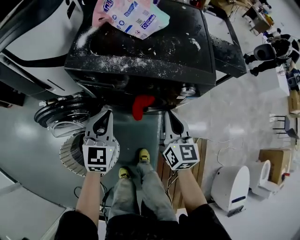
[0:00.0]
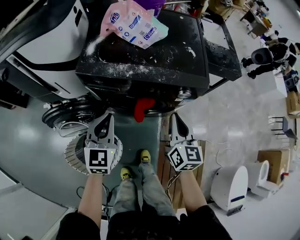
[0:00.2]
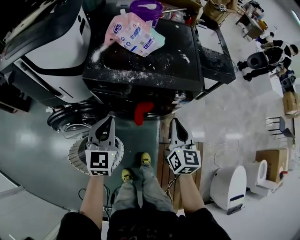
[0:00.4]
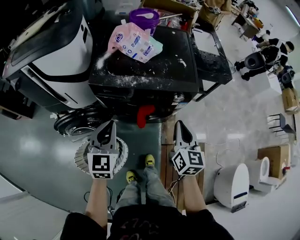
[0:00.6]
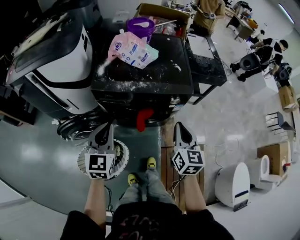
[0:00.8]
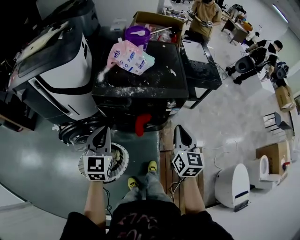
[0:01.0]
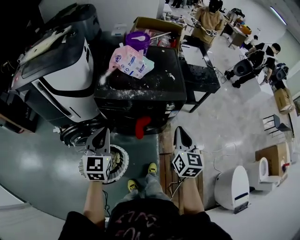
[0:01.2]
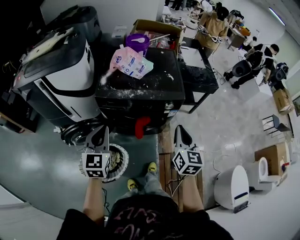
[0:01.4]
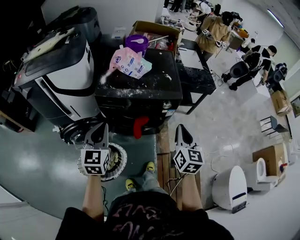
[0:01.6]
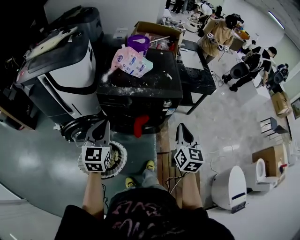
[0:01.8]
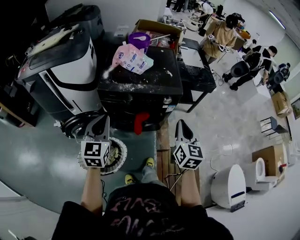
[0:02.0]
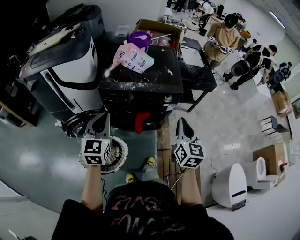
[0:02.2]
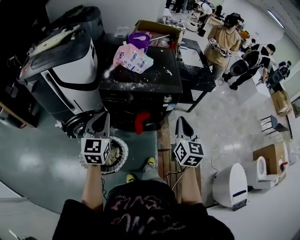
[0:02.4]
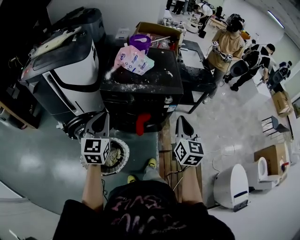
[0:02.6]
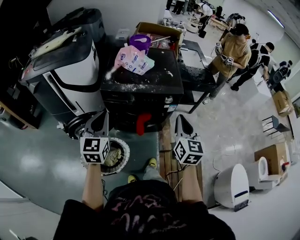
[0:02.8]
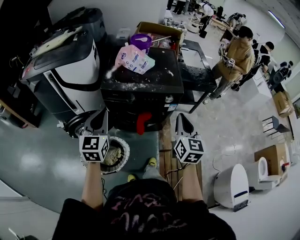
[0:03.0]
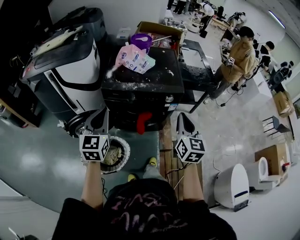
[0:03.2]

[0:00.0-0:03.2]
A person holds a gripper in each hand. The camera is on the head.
0:00.0 to 0:01.6: The two grippers go about 25 cm upward and backward.
0:01.6 to 0:03.2: There are only small adjustments of the grippers.

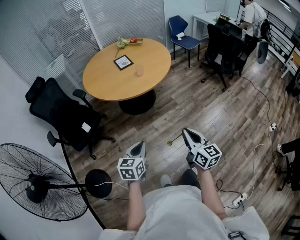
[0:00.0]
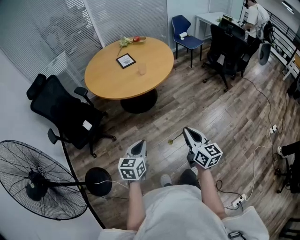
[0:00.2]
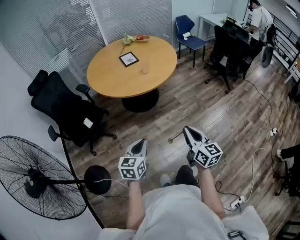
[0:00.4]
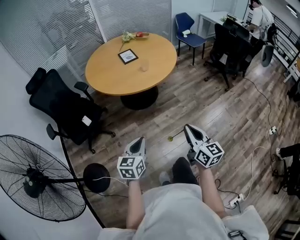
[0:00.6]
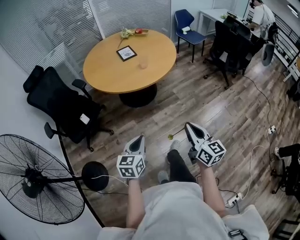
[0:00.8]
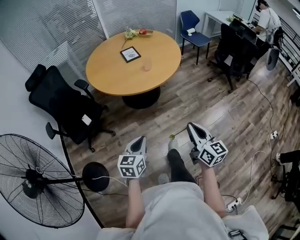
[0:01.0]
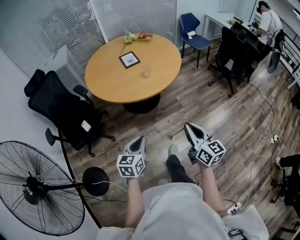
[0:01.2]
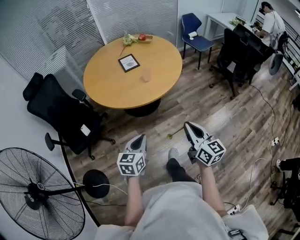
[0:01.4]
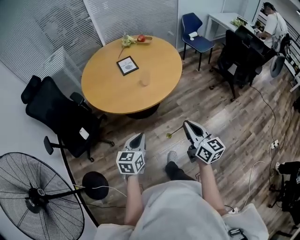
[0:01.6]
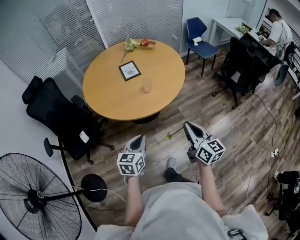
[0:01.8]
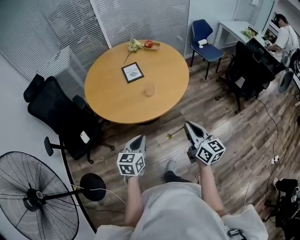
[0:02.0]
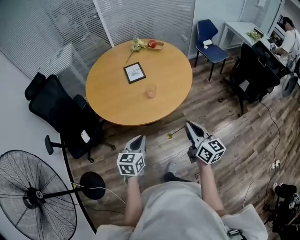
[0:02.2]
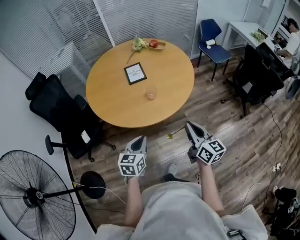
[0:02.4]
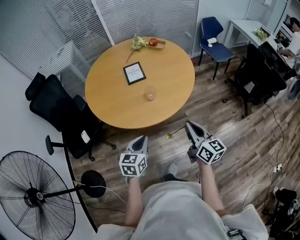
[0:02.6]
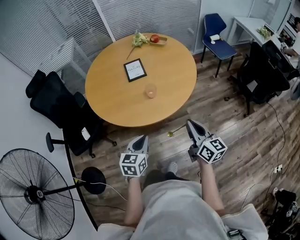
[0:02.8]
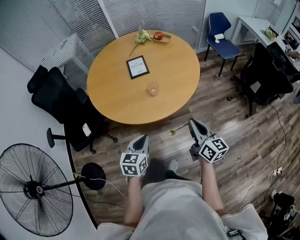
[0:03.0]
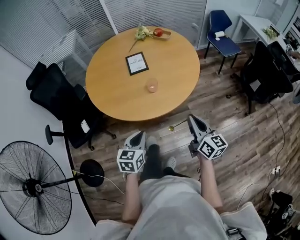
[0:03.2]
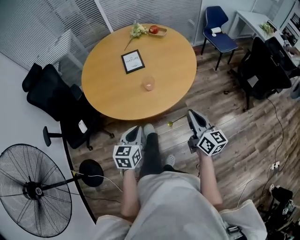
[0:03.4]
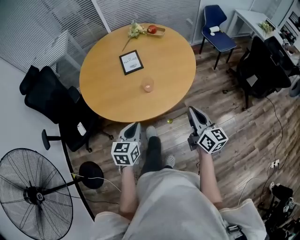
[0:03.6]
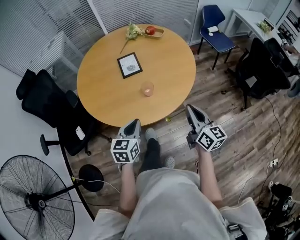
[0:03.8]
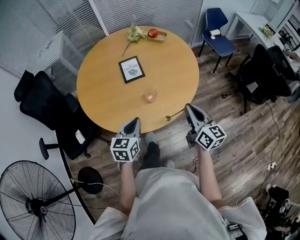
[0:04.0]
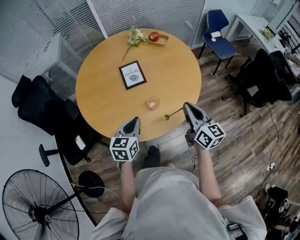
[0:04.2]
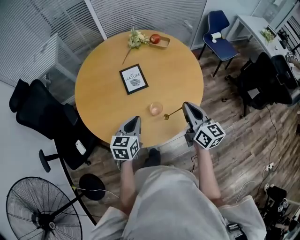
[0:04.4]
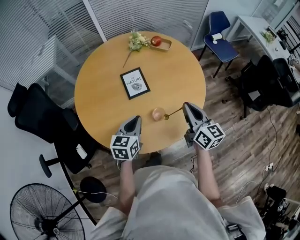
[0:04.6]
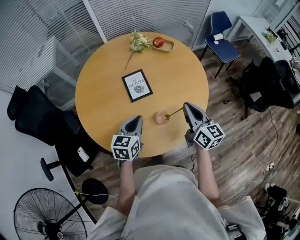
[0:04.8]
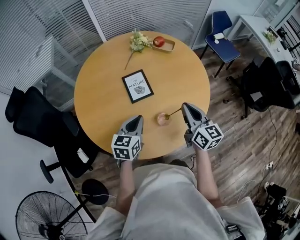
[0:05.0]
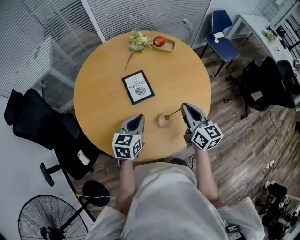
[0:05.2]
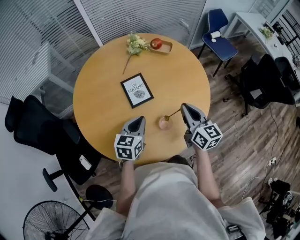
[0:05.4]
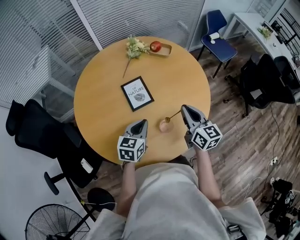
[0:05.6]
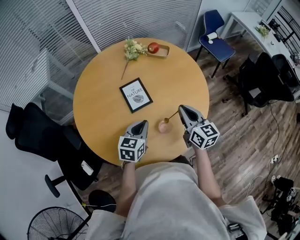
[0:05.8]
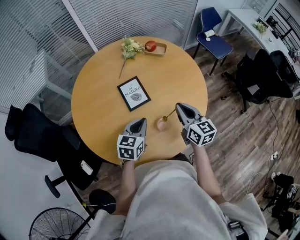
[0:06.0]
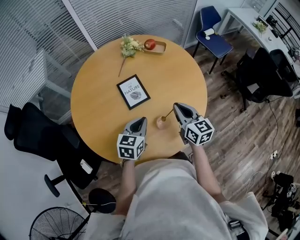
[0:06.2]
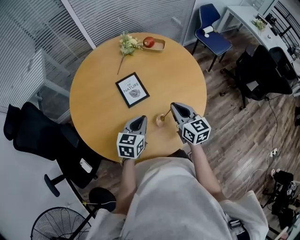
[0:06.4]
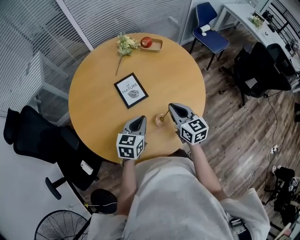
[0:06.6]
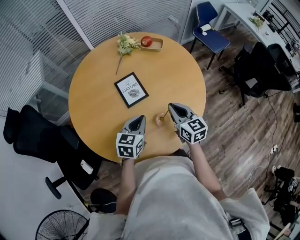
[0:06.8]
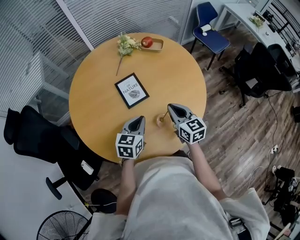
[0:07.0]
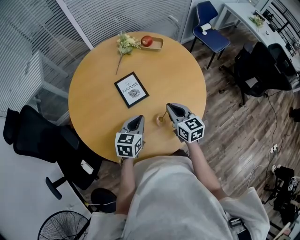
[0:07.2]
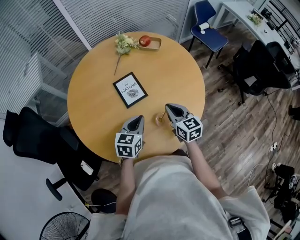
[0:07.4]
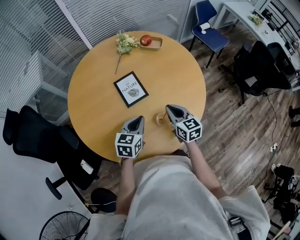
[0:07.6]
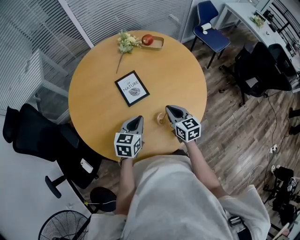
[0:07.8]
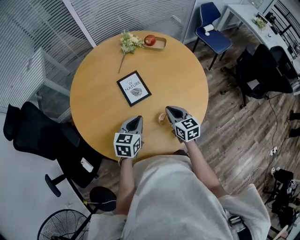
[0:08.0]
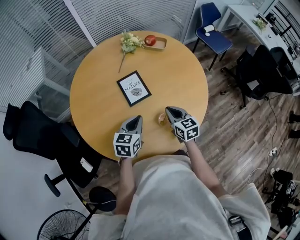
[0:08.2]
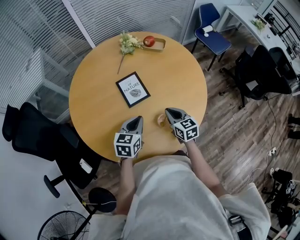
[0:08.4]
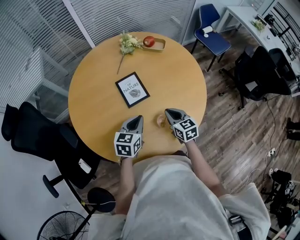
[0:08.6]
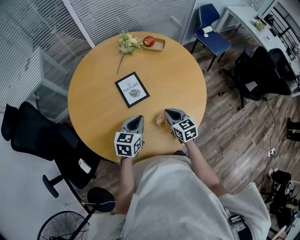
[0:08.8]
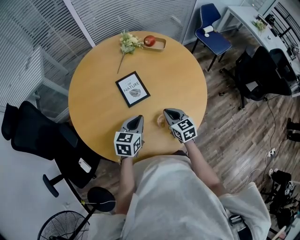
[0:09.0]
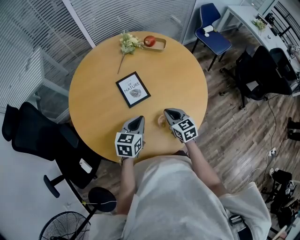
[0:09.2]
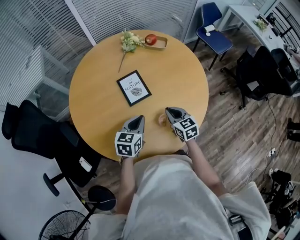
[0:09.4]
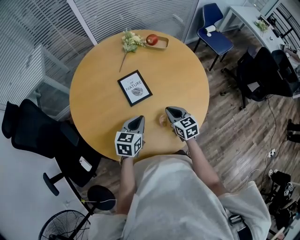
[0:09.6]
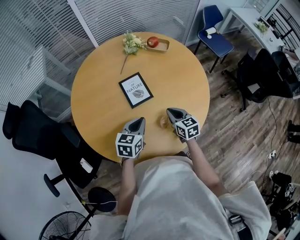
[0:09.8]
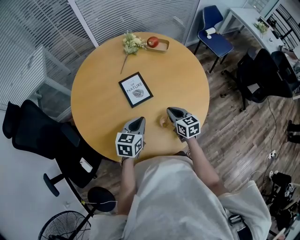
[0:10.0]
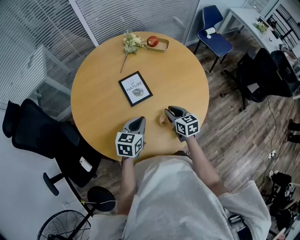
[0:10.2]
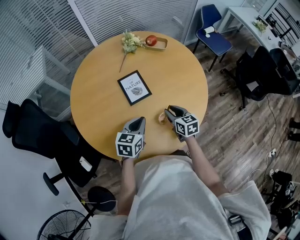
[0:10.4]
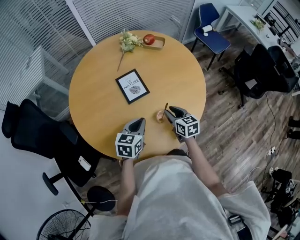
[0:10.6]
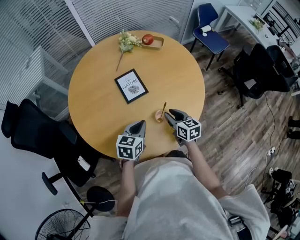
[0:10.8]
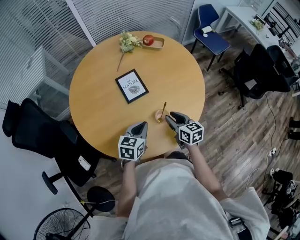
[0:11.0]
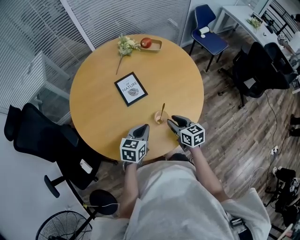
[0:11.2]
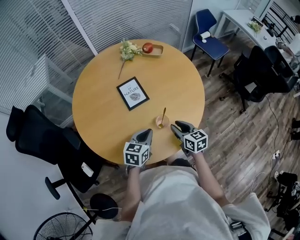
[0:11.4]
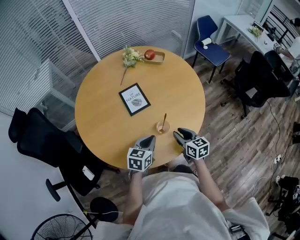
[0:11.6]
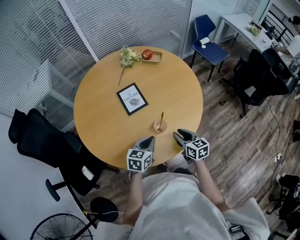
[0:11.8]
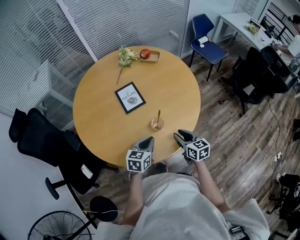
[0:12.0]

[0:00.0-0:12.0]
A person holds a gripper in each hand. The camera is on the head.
0:00.0 to 0:01.6: Both grippers travel together forward, approximately 25 cm.
0:01.6 to 0:03.0: Both grippers travel together forward, some 15 cm.
0:03.0 to 0:04.4: Both grippers move forward, approximately 25 cm.
0:04.4 to 0:06.0: The right gripper heads forward, to the left and downward, covering some 15 cm, while the left gripper travels forward by some 10 cm.
0:06.0 to 0:07.6: The right gripper moves downward, approximately 10 cm.
0:07.6 to 0:09.0: The grippers make only small movements.
0:09.0 to 0:10.4: The right gripper opens.
0:10.4 to 0:12.0: Both grippers move backward and to the right, some 15 cm.

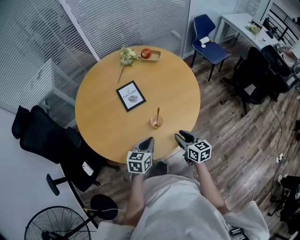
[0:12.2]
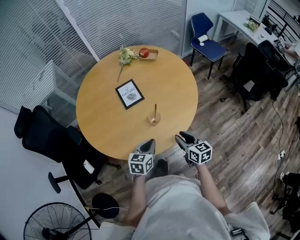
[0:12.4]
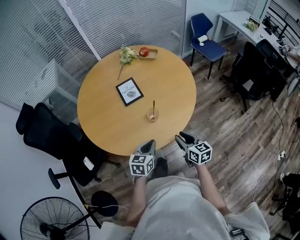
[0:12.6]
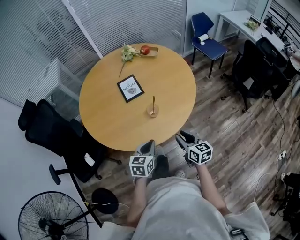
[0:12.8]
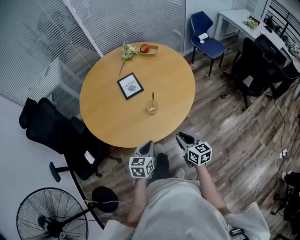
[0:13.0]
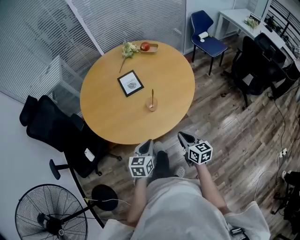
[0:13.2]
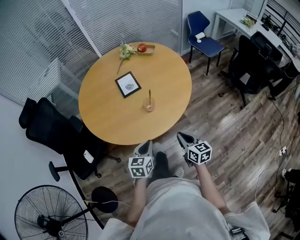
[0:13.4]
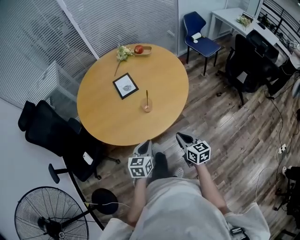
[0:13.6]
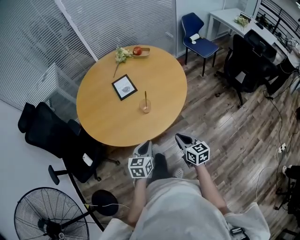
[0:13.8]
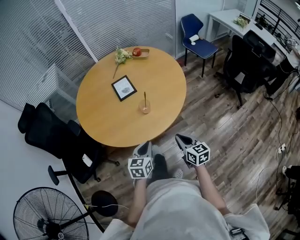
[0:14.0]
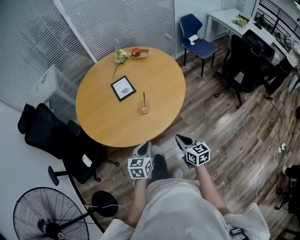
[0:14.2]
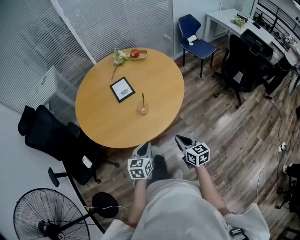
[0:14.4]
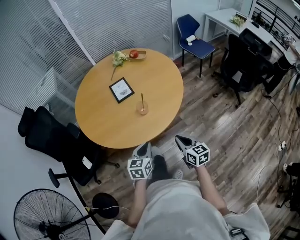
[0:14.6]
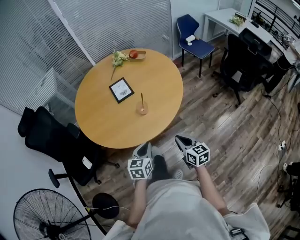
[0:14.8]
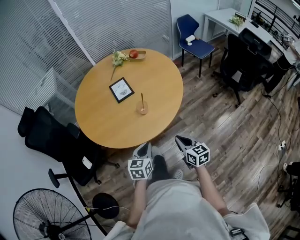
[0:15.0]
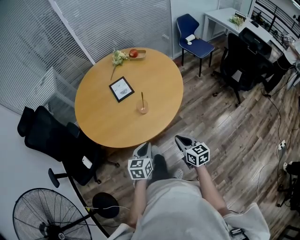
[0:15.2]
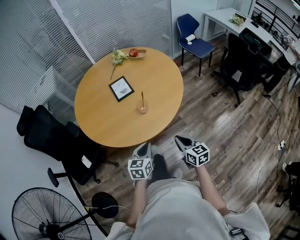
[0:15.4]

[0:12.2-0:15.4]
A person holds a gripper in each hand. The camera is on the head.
0:12.2 to 0:13.8: Both grippers move backward, about 15 cm. The right gripper closes up.
0:13.8 to 0:15.4: The grippers stay close to where they were, moving slightly.

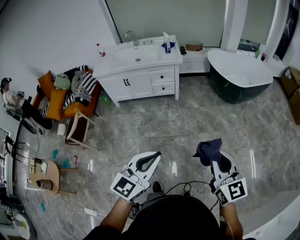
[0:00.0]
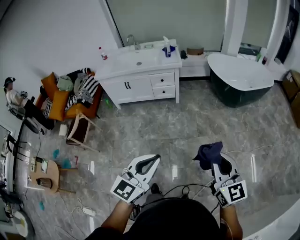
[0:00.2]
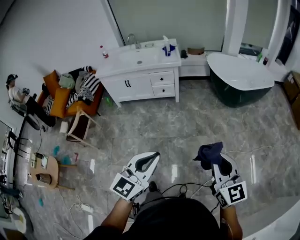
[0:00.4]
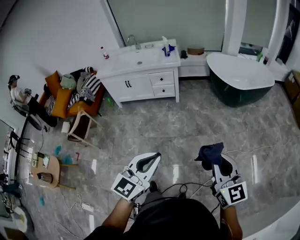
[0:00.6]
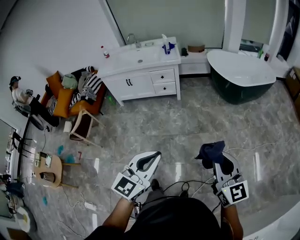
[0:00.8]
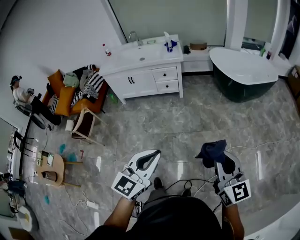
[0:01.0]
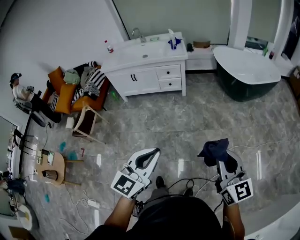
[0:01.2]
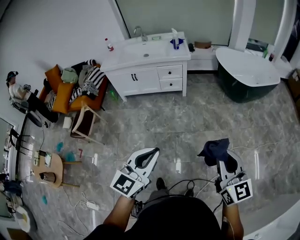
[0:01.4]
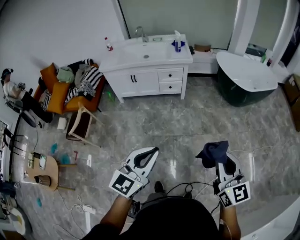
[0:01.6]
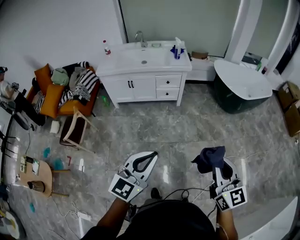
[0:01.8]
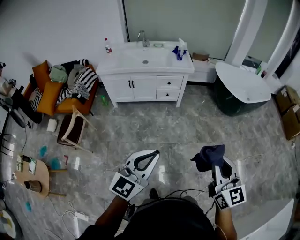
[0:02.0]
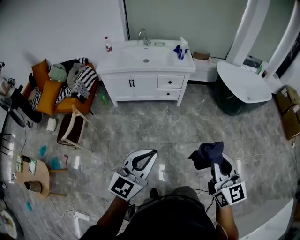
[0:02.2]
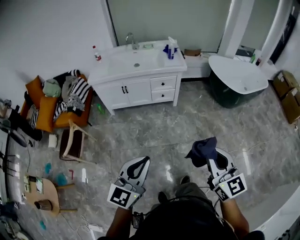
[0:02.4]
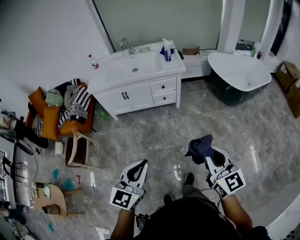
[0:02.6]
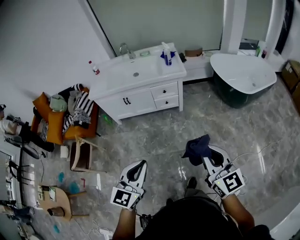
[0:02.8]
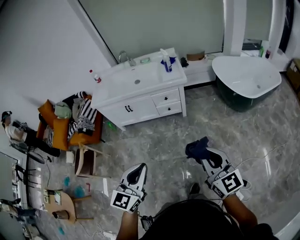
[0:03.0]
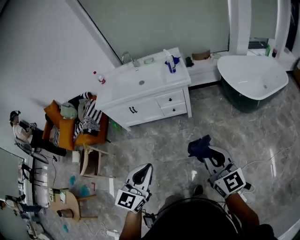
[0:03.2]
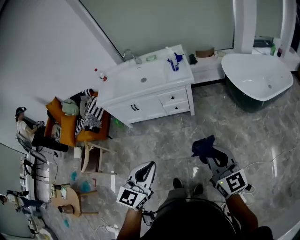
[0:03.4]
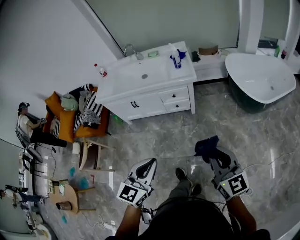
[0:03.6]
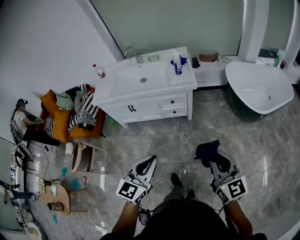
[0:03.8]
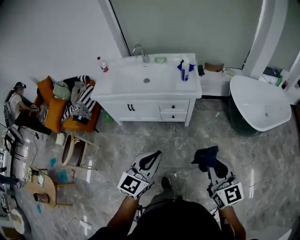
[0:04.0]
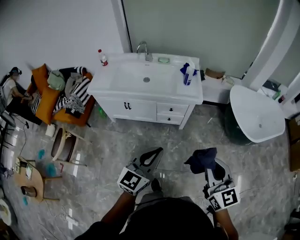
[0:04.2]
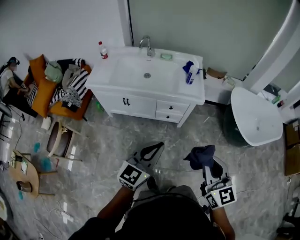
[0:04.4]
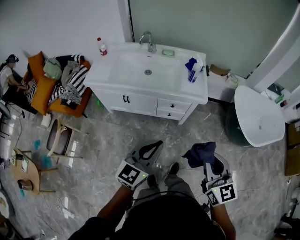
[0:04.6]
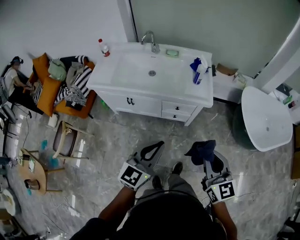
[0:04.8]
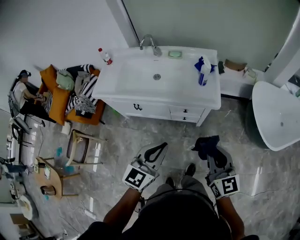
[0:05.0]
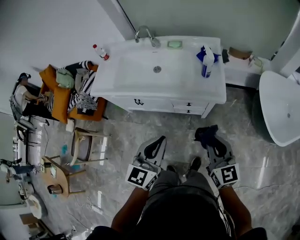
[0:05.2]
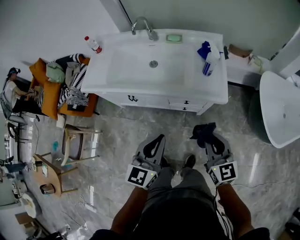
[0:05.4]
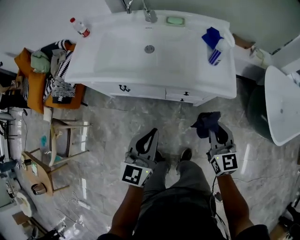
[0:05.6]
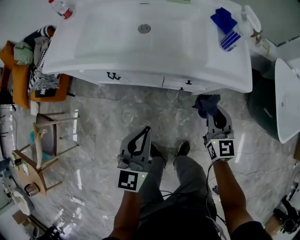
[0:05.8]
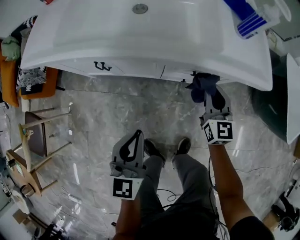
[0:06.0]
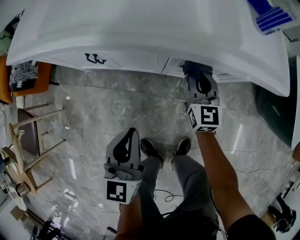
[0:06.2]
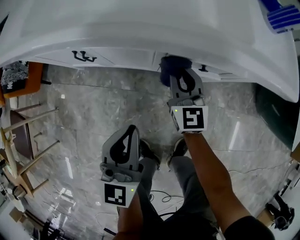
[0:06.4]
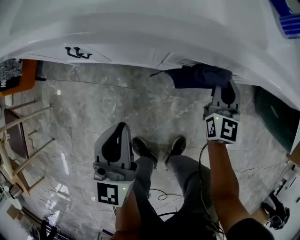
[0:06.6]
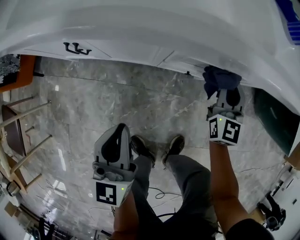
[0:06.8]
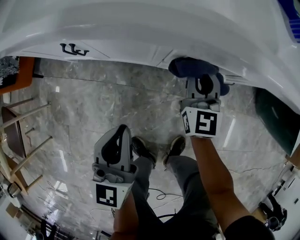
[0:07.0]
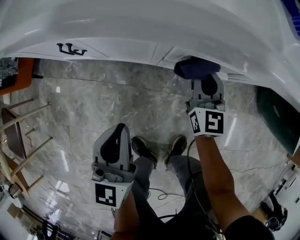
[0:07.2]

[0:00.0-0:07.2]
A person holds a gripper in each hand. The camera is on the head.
0:00.0 to 0:01.4: The left gripper moves roughly 10 cm to the right and comes back. The right gripper moves approximately 10 cm to the right and comes back.
0:01.4 to 0:02.8: The grippers both shift forward and to the left by approximately 25 cm.
0:02.8 to 0:04.4: The grippers both shift forward by roughly 30 cm.
0:04.4 to 0:05.8: The grippers both shift downward and forward by about 40 cm. The left gripper rotates some 20 degrees.
0:05.8 to 0:07.2: The left gripper goes about 20 cm downward. Meanwhile the right gripper is displaced downward and forward by approximately 25 cm.
